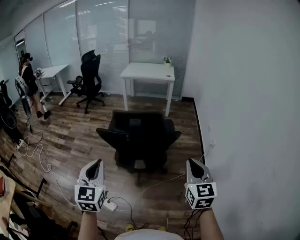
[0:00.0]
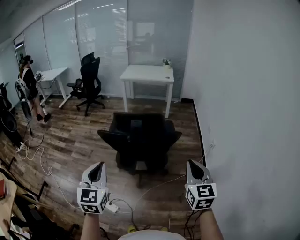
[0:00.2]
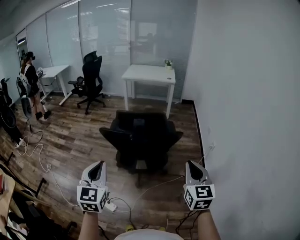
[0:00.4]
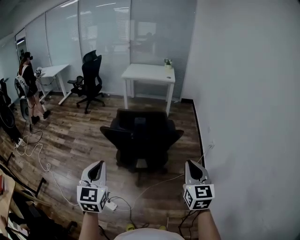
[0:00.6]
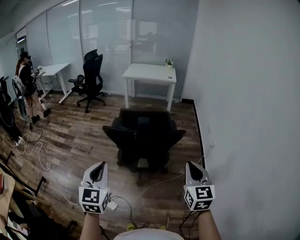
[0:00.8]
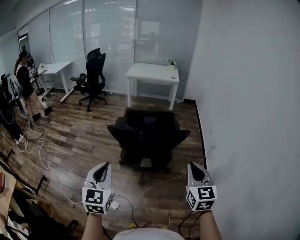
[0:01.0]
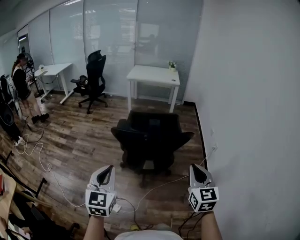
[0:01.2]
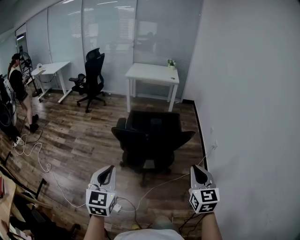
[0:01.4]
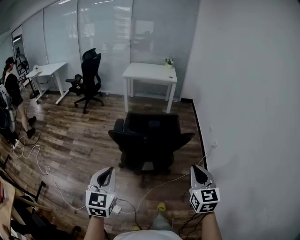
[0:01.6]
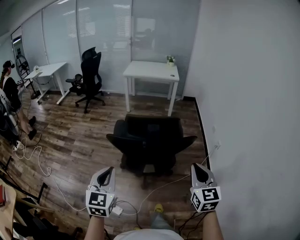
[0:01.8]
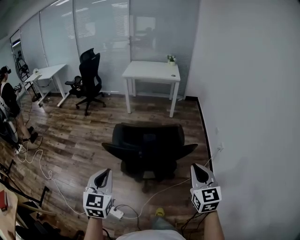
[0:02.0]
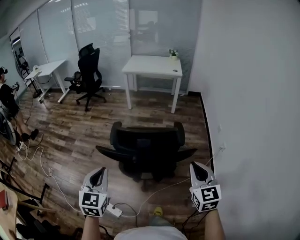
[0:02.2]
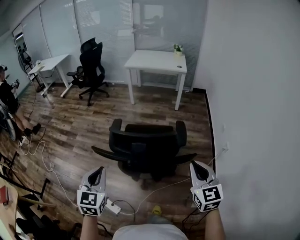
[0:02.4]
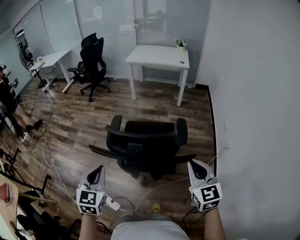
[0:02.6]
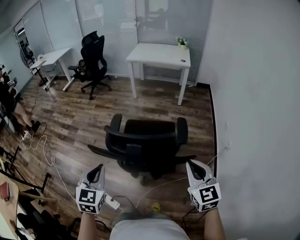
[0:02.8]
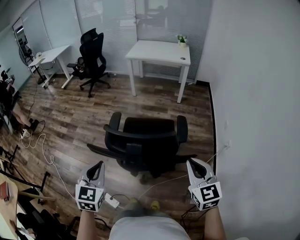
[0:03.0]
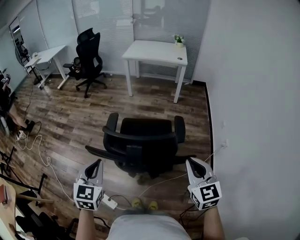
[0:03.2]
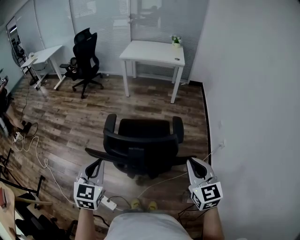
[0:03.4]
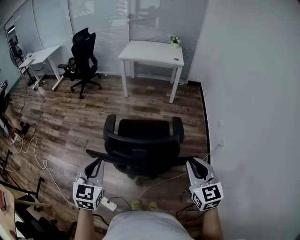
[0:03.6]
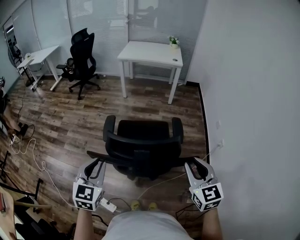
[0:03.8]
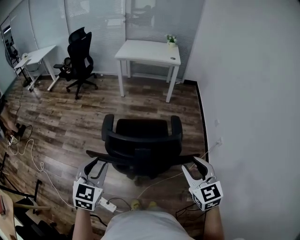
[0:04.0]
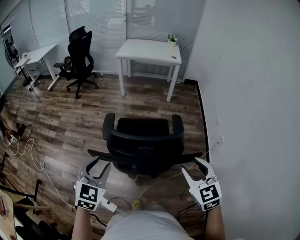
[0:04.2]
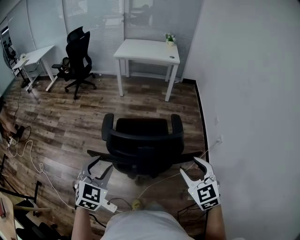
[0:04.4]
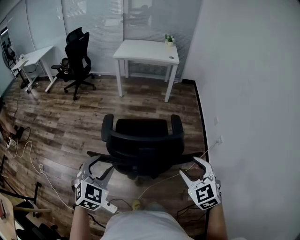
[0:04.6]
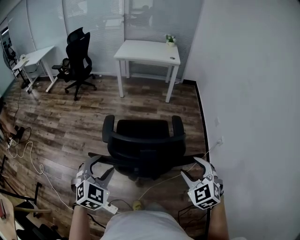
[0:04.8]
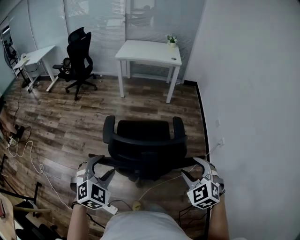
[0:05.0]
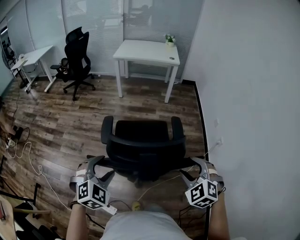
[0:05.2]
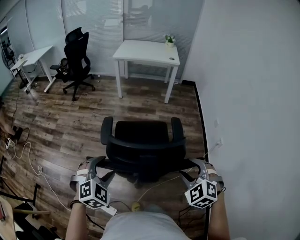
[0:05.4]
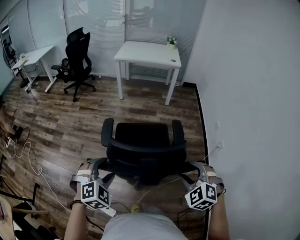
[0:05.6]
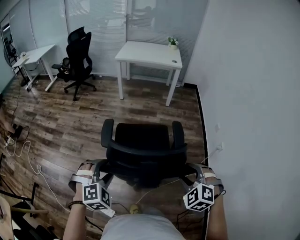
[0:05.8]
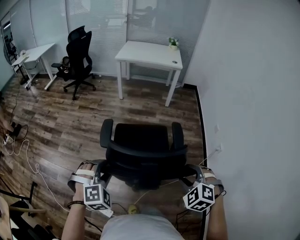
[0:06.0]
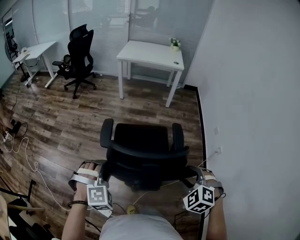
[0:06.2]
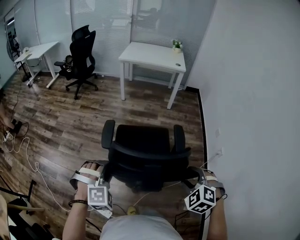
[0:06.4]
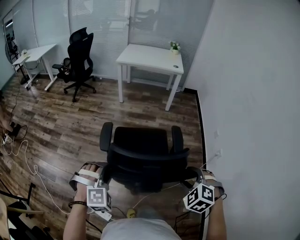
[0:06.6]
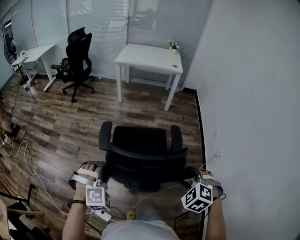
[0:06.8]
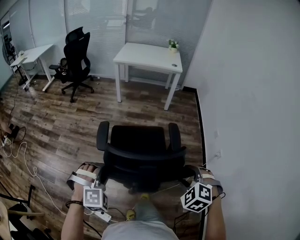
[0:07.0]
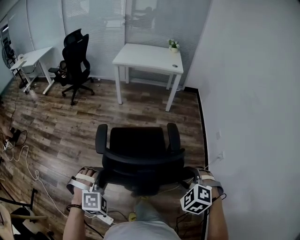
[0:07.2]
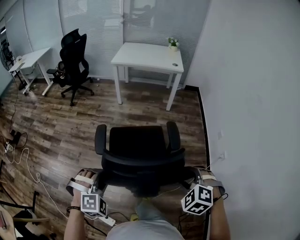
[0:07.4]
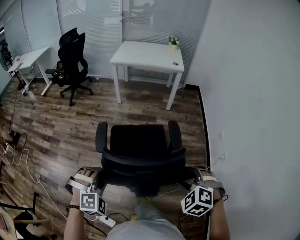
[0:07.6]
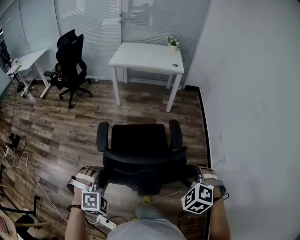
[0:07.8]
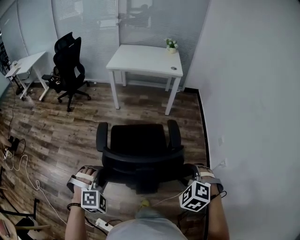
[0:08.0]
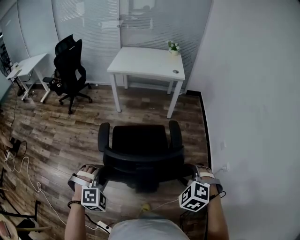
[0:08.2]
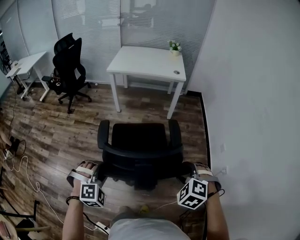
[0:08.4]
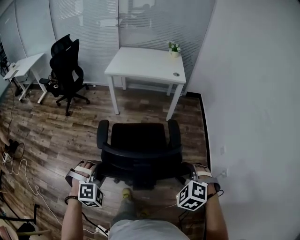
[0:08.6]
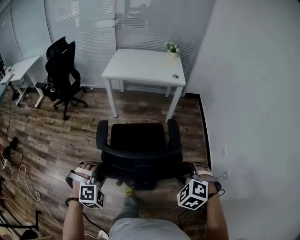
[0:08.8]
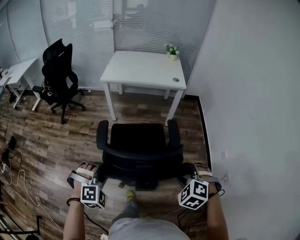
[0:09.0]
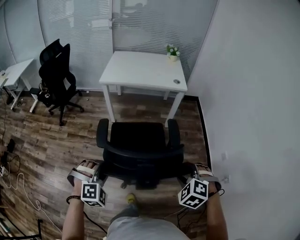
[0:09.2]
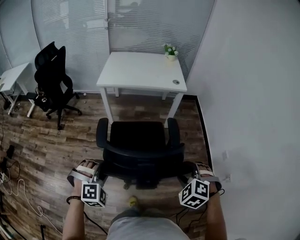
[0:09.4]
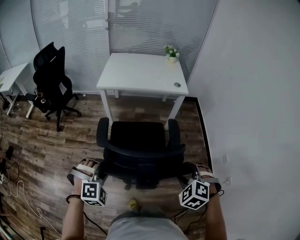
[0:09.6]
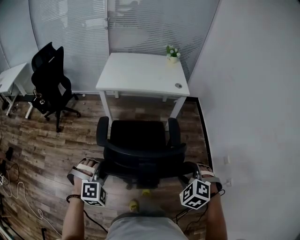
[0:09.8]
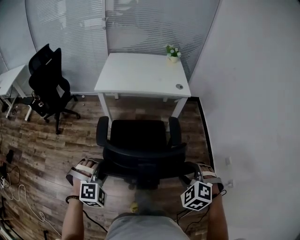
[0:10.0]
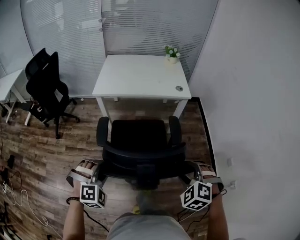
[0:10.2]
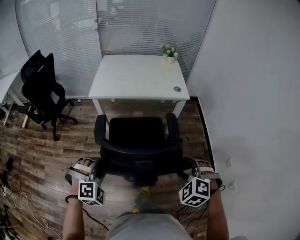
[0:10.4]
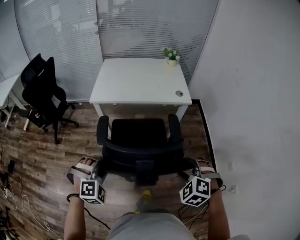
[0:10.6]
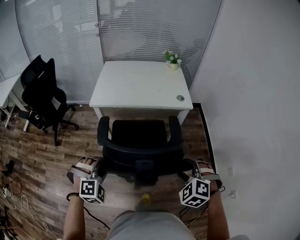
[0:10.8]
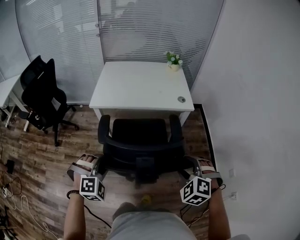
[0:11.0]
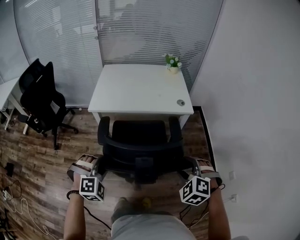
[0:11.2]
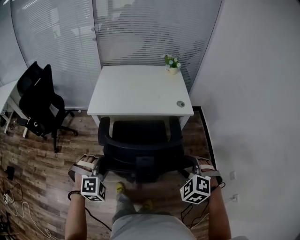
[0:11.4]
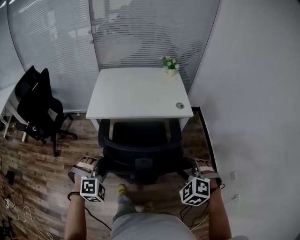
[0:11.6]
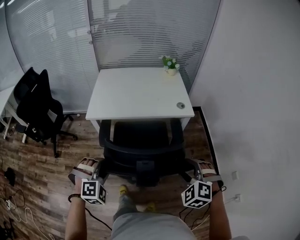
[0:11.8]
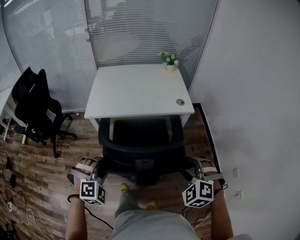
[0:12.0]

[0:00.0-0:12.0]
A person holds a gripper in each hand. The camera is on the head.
0:00.0 to 0:01.6: Both grippers travel together to the left, roughly 10 cm.
0:01.6 to 0:03.0: Both grippers travel together forward, about 25 cm.
0:03.0 to 0:04.4: The left gripper moves approximately 5 cm, changes its angle by roughly 20 degrees, and opens its fingers, while the right gripper heads to the left, covering roughly 5 cm, and opens its fingers.
0:04.4 to 0:06.0: Both grippers move downward, roughly 5 cm. The left gripper turns by some 40 degrees; the right gripper rotates approximately 40 degrees.
0:06.0 to 0:07.6: Both grippers travel together forward, about 15 cm. The left gripper closes.
0:07.6 to 0:09.0: The two grippers go approximately 35 cm forward.
0:09.0 to 0:10.4: Both grippers move forward, some 30 cm.
0:10.4 to 0:12.0: Both grippers travel together forward, roughly 20 cm.

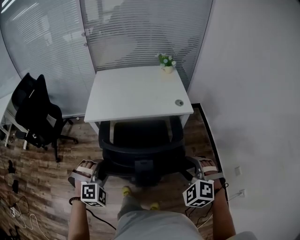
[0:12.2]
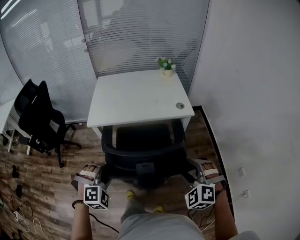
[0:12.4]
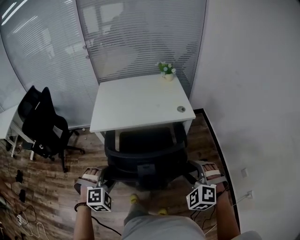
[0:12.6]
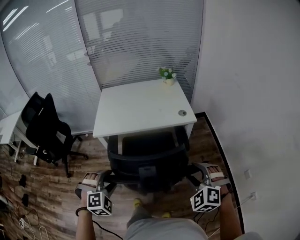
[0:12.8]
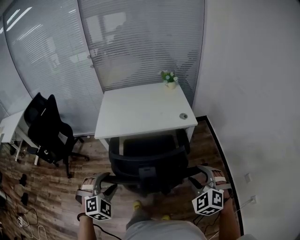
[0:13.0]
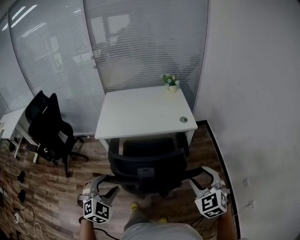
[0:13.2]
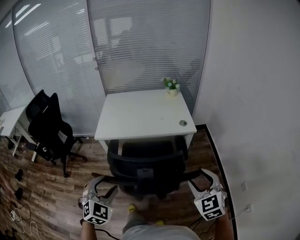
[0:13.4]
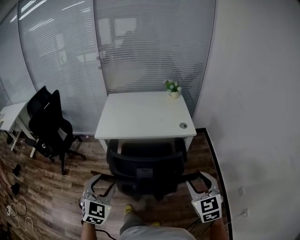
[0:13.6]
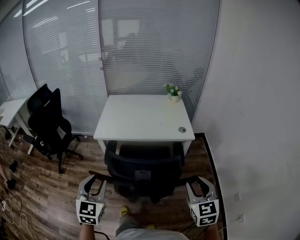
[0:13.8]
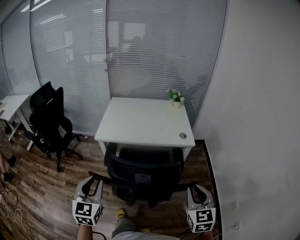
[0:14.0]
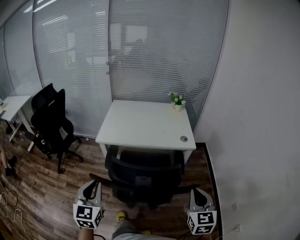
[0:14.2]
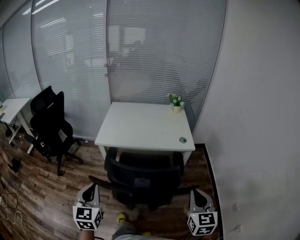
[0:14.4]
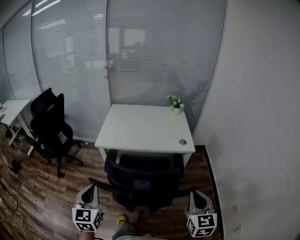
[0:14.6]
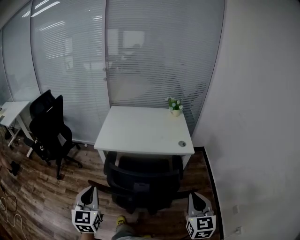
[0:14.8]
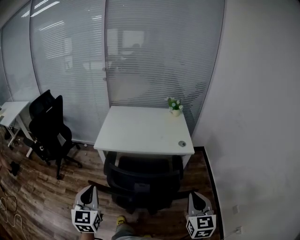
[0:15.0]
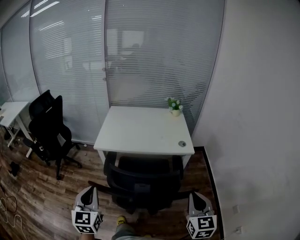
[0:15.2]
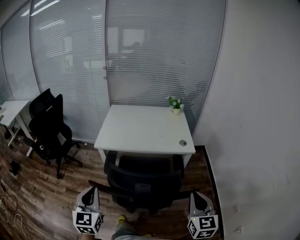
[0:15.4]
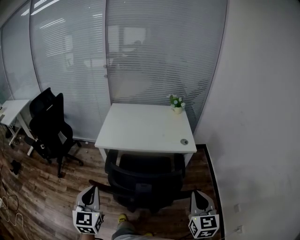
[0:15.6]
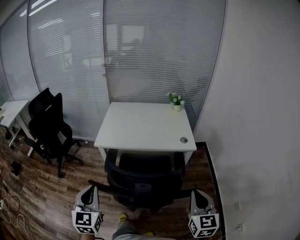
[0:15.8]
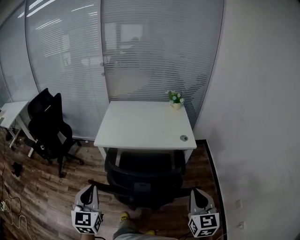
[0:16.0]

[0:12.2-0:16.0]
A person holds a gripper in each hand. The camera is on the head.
0:12.2 to 0:13.4: The right gripper shifts roughly 5 cm upward, and changes its angle by approximately 40 degrees; the left gripper travels upward and backward by about 10 cm, changes its angle by about 40 degrees, and opens up.
0:13.4 to 0:14.8: The left gripper travels to the left and upward by approximately 10 cm, rotates some 50 degrees, and closes its fingers; the right gripper swivels about 20 degrees, and closes its fingers.
0:14.8 to 0:16.0: The grippers move only a little.

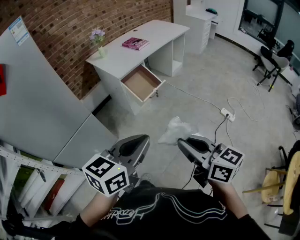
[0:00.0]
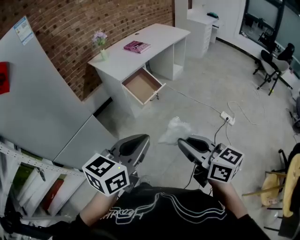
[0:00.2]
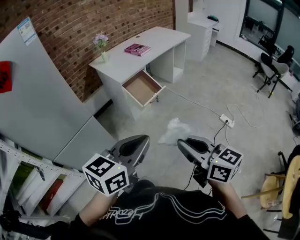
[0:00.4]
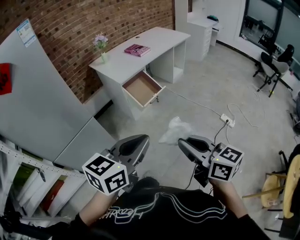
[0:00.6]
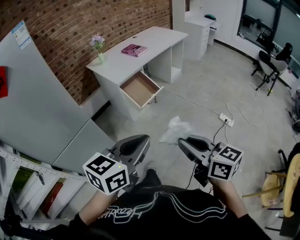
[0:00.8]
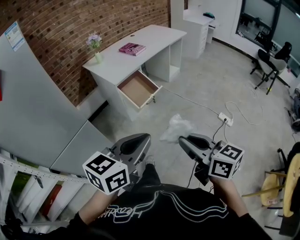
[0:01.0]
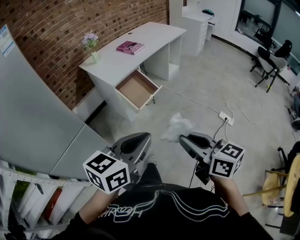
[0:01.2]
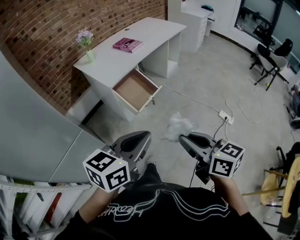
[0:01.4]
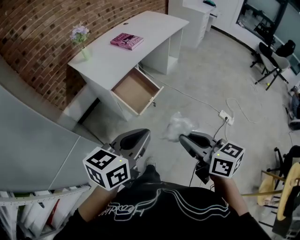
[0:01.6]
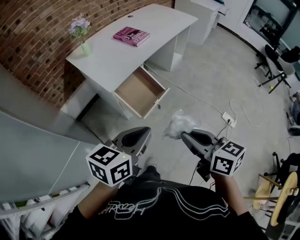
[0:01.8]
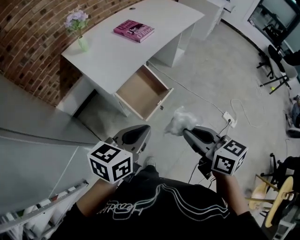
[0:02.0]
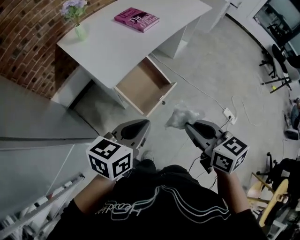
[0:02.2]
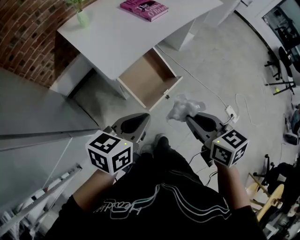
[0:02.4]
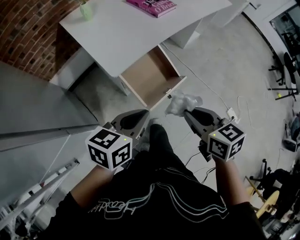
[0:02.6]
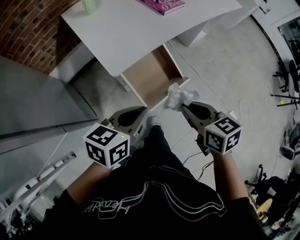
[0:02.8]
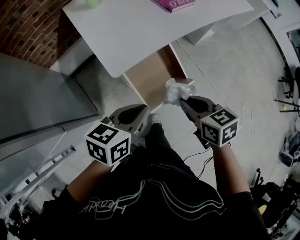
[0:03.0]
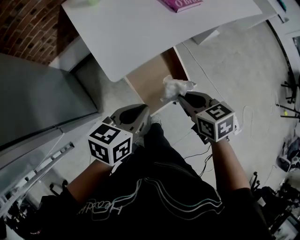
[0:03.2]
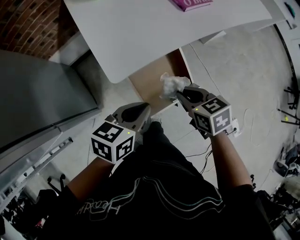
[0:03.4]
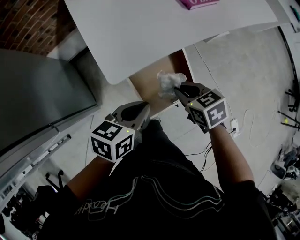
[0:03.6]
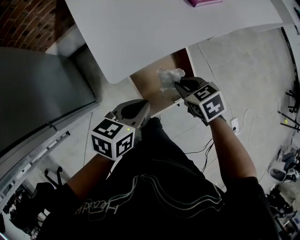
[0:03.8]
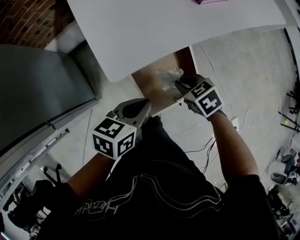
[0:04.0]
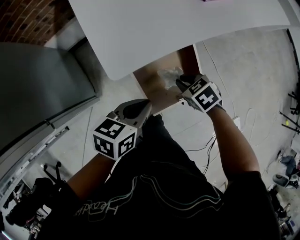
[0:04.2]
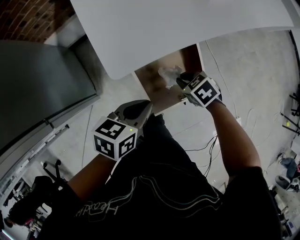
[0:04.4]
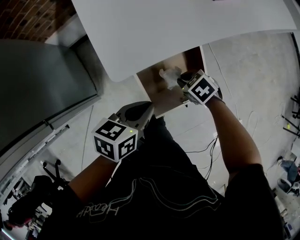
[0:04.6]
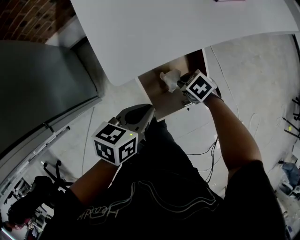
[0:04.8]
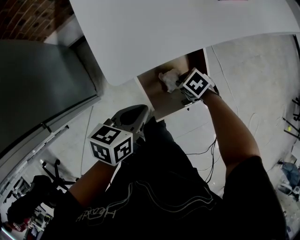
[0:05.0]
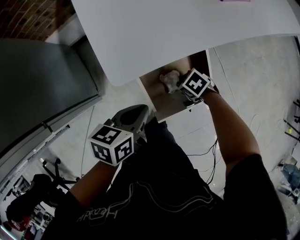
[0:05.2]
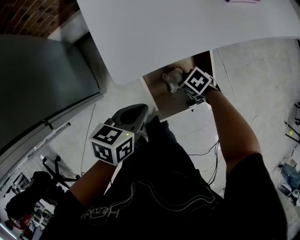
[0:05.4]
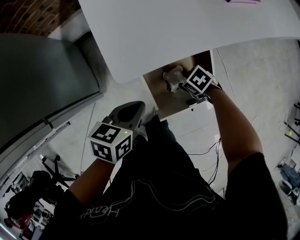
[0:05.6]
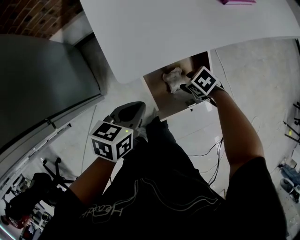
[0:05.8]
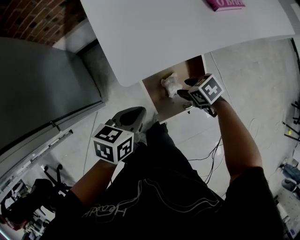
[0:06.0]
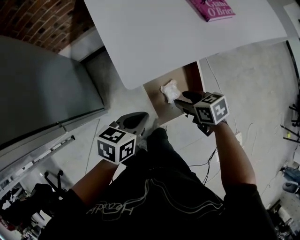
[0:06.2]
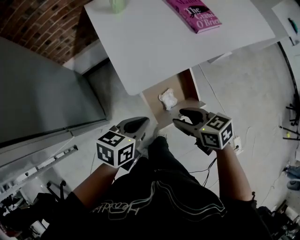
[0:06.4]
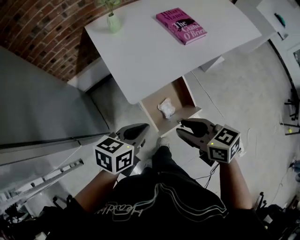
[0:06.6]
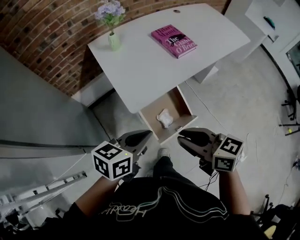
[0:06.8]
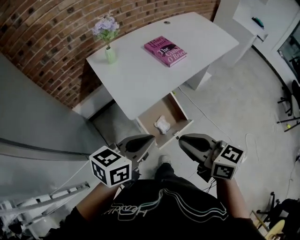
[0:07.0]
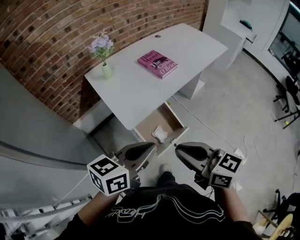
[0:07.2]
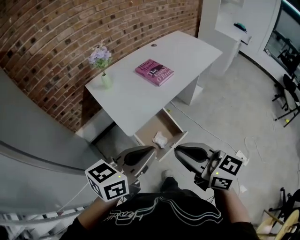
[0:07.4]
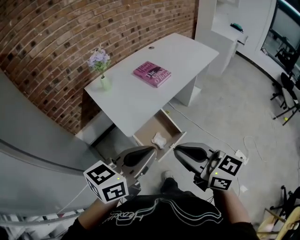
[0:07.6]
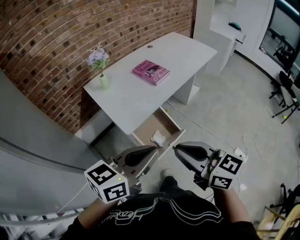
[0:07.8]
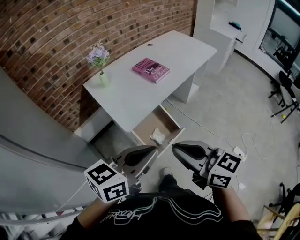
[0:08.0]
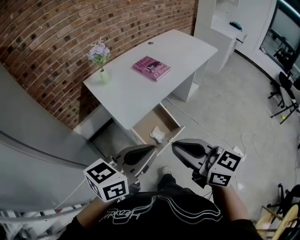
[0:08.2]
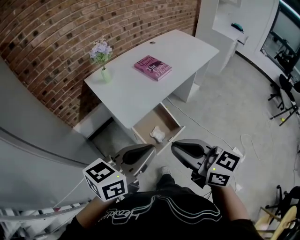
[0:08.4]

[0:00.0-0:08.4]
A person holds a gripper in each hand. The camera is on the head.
0:00.0 to 0:01.4: Both grippers travel together forward, some 15 cm.
0:01.4 to 0:02.8: The two grippers travel together, forward, some 40 cm. Both grippers travel together downward, roughly 20 cm. The left gripper rotates approximately 20 degrees; the right gripper changes its angle by approximately 30 degrees.
0:02.8 to 0:04.2: The right gripper goes approximately 30 cm downward and forward, and rotates roughly 40 degrees. Meanwhile the left gripper shifts about 20 cm downward and forward.
0:04.2 to 0:05.6: The left gripper ends up roughly 5 cm from where it was. The right gripper moves downward, some 10 cm, turns by roughly 20 degrees, and opens its fingers.
0:05.6 to 0:07.0: The right gripper shifts some 50 cm upward, angles its fingers upward, by some 50 degrees, and closes; the left gripper goes roughly 30 cm upward, and turns by about 30 degrees.
0:07.0 to 0:08.4: Both grippers travel together upward and backward, approximately 15 cm.
